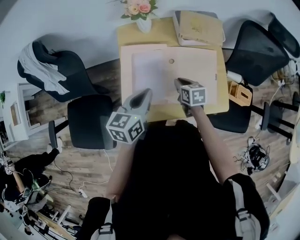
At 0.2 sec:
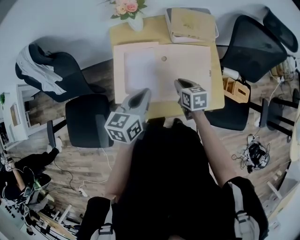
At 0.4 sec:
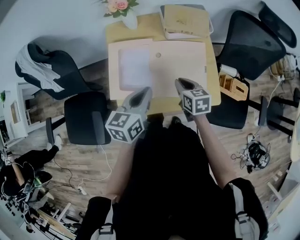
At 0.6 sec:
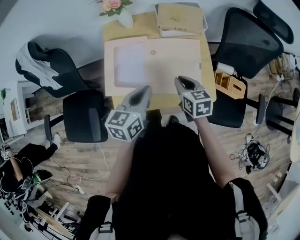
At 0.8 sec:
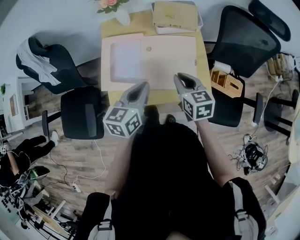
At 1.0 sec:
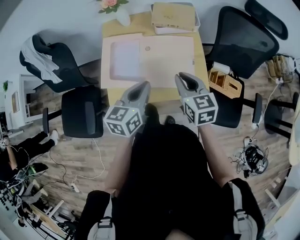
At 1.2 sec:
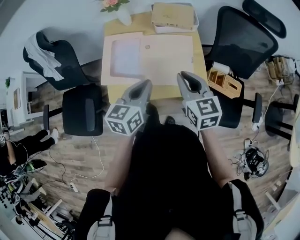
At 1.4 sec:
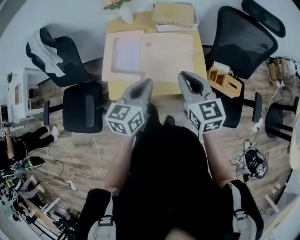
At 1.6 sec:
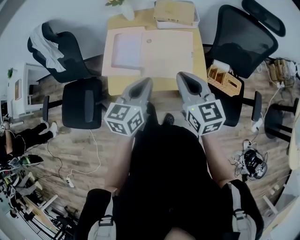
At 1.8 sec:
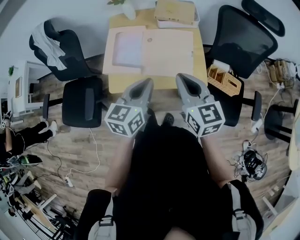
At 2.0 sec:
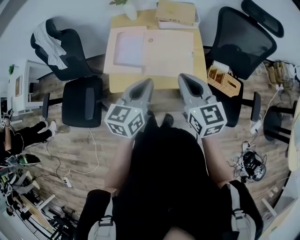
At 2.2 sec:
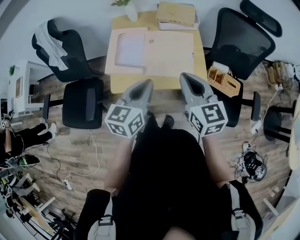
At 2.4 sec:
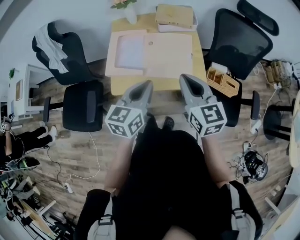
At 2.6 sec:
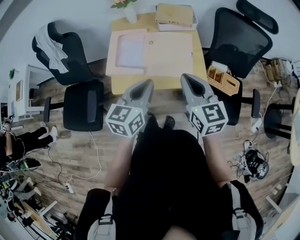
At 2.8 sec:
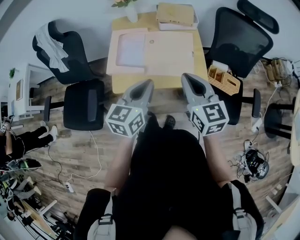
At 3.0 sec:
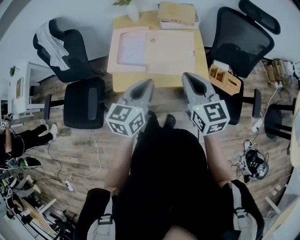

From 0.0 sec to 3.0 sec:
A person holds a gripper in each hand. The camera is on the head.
From 0.0 sec to 1.6 sec: The right gripper goes approximately 35 cm upward, backward and to the right, and tips its fingers upward by about 30 degrees, while the left gripper travels to the right and backward by some 25 cm.
From 1.6 sec to 3.0 sec: The left gripper travels backward by roughly 5 cm, while the right gripper ends up some 5 cm from where it was.

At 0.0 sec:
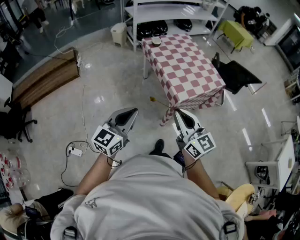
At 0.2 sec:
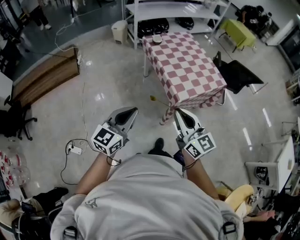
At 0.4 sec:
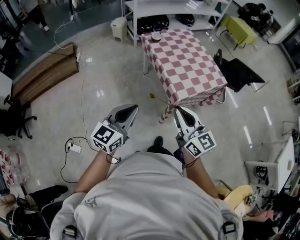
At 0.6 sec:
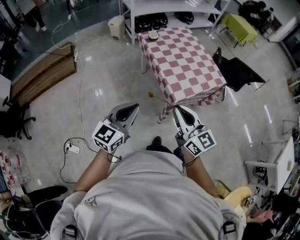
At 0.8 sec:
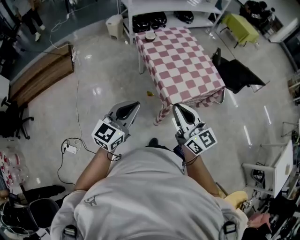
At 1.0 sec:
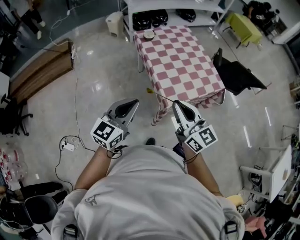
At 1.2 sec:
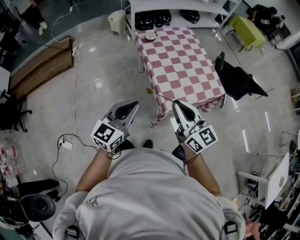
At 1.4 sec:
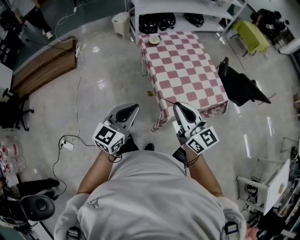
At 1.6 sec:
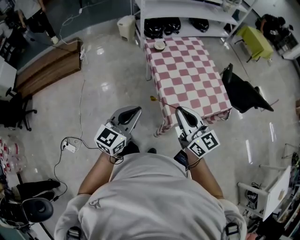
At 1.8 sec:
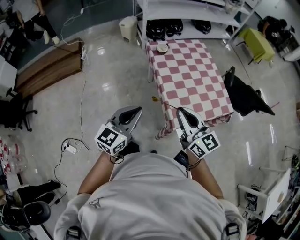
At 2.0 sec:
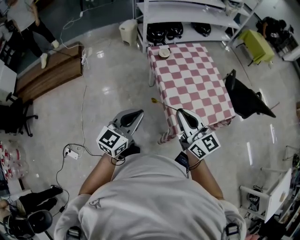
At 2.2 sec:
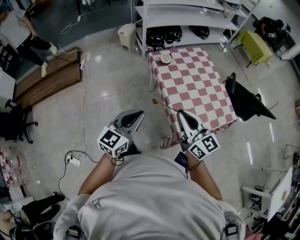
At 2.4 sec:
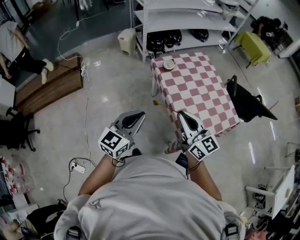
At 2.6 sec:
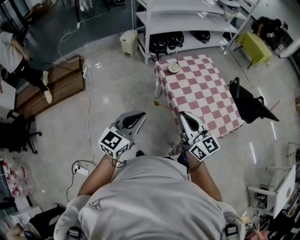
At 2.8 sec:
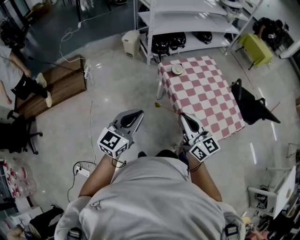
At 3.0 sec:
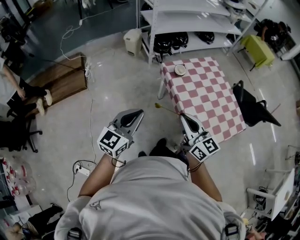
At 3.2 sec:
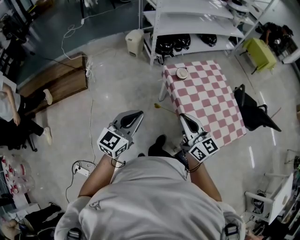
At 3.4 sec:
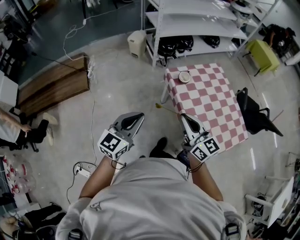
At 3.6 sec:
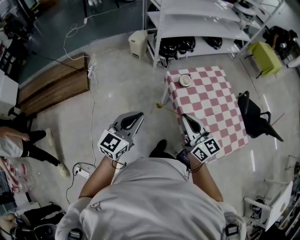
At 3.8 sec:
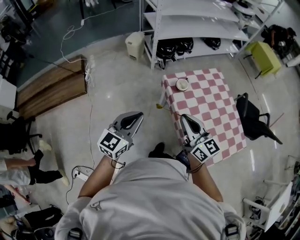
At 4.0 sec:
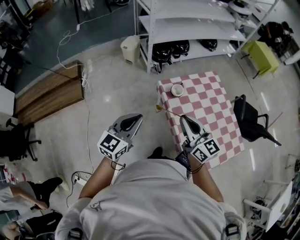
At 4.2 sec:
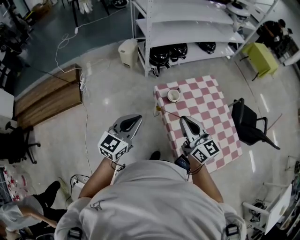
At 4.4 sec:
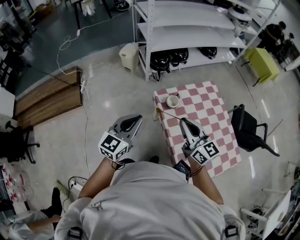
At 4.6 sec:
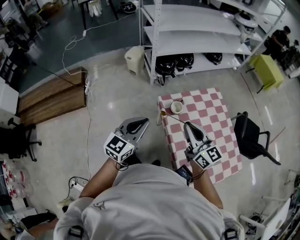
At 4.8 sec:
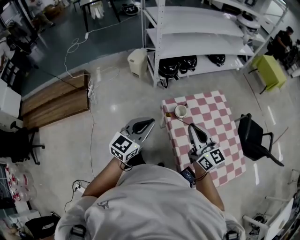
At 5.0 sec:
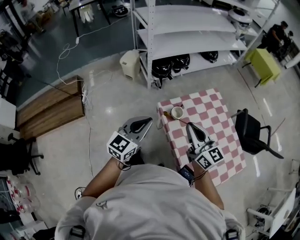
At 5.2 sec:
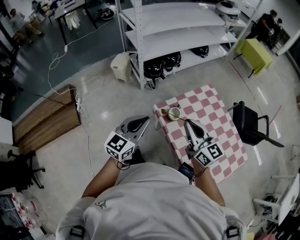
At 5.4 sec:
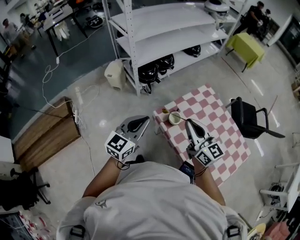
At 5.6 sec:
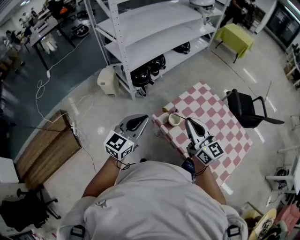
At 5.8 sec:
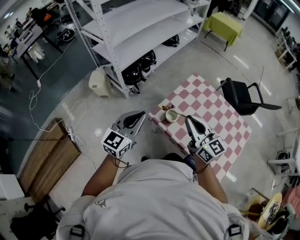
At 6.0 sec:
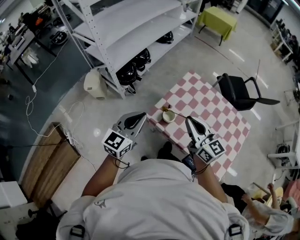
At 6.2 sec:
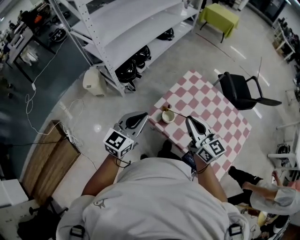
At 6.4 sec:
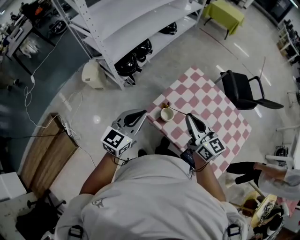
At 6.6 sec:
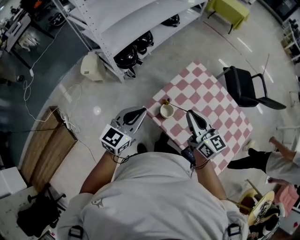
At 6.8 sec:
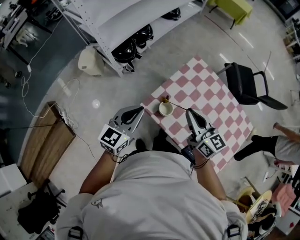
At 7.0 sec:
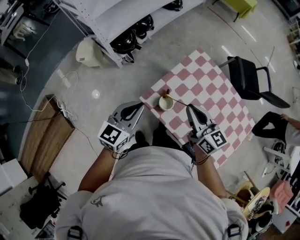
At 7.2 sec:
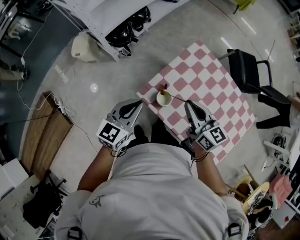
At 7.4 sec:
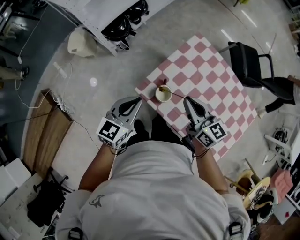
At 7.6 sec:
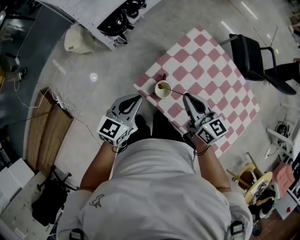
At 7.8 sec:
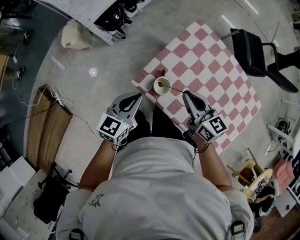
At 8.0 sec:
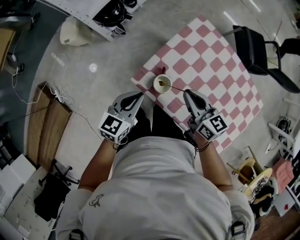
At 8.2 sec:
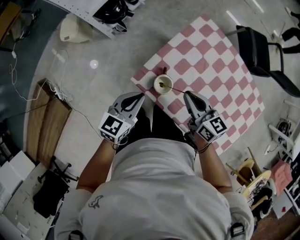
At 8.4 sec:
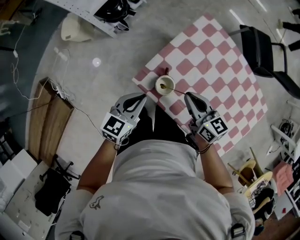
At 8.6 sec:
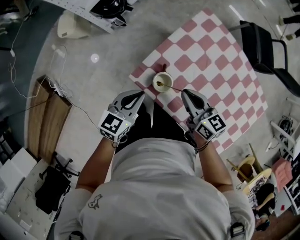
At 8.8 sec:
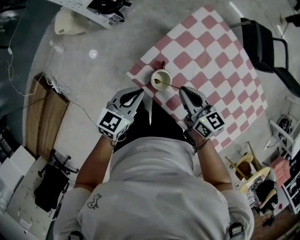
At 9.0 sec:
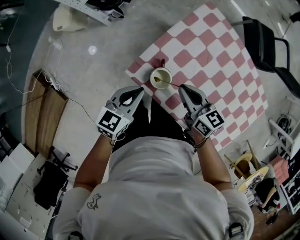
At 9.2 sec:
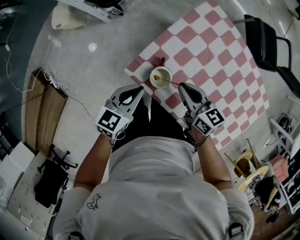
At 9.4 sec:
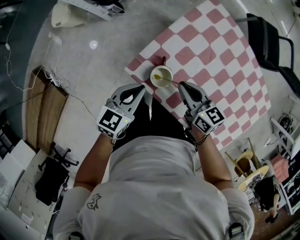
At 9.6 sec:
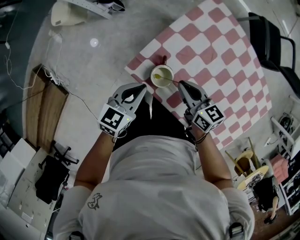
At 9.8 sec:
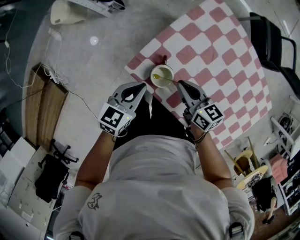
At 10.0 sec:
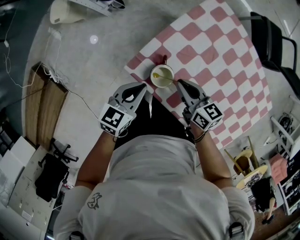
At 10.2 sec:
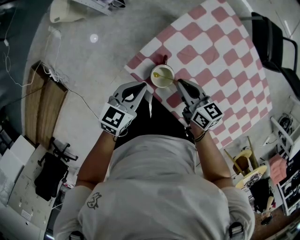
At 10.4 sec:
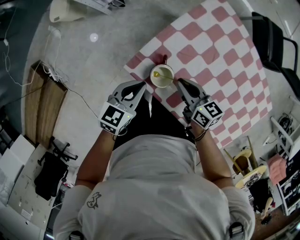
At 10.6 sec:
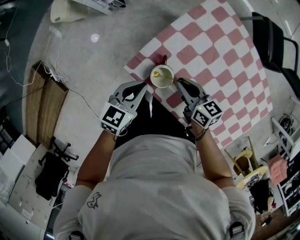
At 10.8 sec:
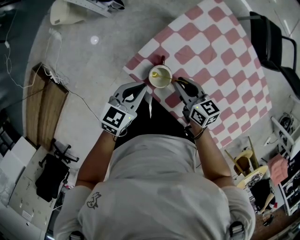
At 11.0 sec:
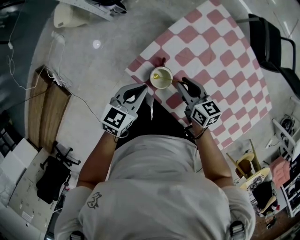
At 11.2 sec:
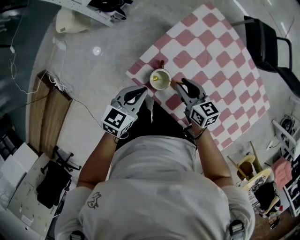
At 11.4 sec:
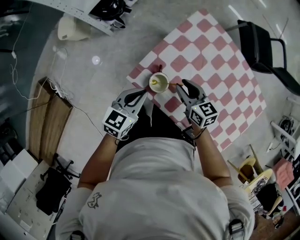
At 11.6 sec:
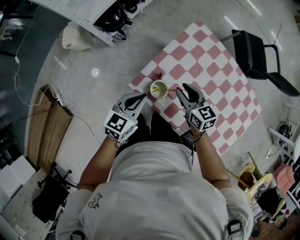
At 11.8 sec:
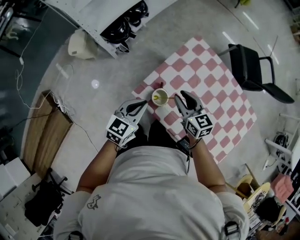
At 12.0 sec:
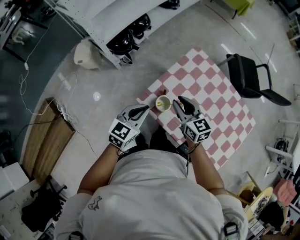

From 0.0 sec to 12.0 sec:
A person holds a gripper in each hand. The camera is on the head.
From 0.0 sec to 1.6 sec: Both grippers move forward and to the right, roughly 25 cm.
From 1.6 sec to 3.0 sec: The two grippers go some 25 cm to the left and forward.
From 3.0 sec to 4.4 sec: The two grippers go roughly 25 cm forward.
From 4.4 sec to 6.0 sec: The right gripper shifts by about 15 cm, and turns by roughly 30 degrees. The left gripper changes place by some 20 cm, and swivels some 30 degrees.
From 6.0 sec to 7.6 sec: The two grippers go roughly 20 cm downward and forward. The right gripper rotates approximately 20 degrees.
From 7.6 sec to 9.0 sec: The grippers both shift downward by approximately 10 cm.
From 9.0 sec to 10.4 sec: The right gripper shifts some 5 cm downward.
From 10.4 sec to 12.0 sec: Both grippers move upward, approximately 15 cm. The right gripper changes its angle by approximately 30 degrees.

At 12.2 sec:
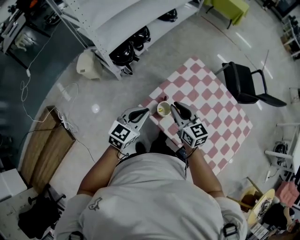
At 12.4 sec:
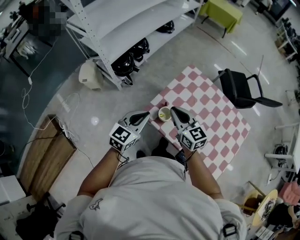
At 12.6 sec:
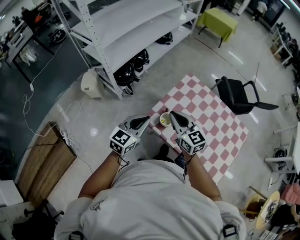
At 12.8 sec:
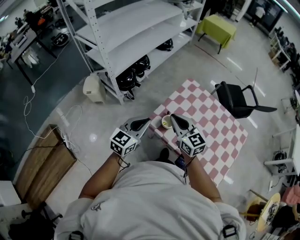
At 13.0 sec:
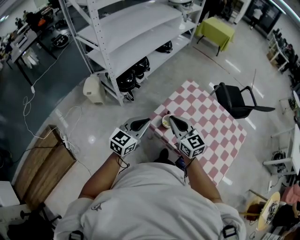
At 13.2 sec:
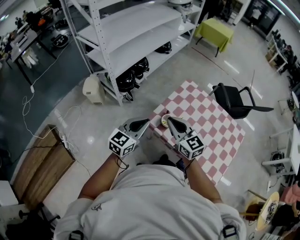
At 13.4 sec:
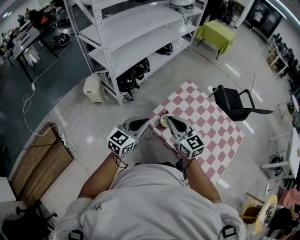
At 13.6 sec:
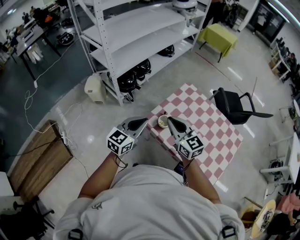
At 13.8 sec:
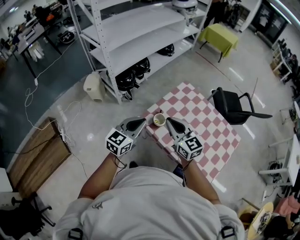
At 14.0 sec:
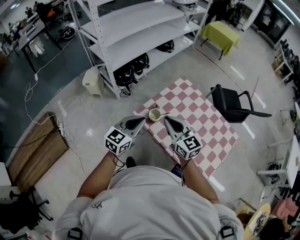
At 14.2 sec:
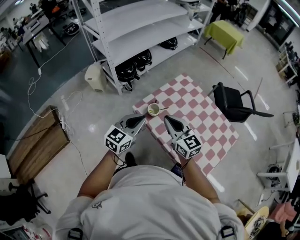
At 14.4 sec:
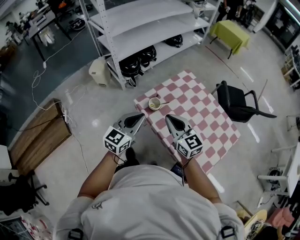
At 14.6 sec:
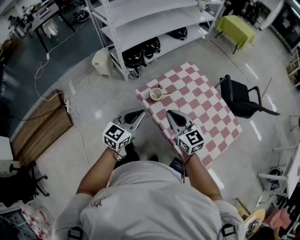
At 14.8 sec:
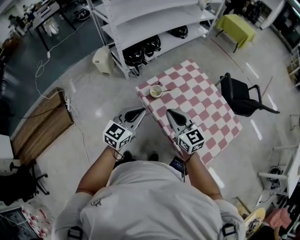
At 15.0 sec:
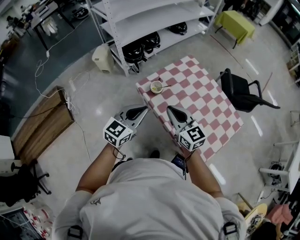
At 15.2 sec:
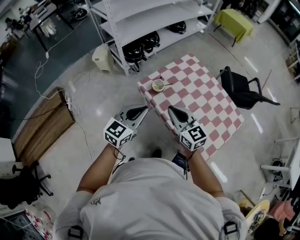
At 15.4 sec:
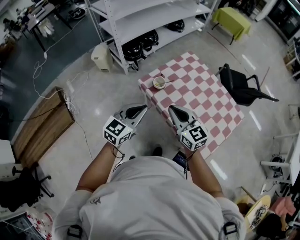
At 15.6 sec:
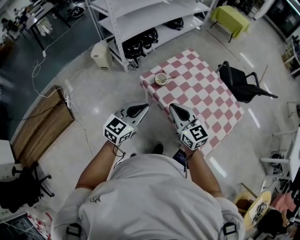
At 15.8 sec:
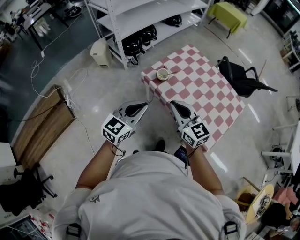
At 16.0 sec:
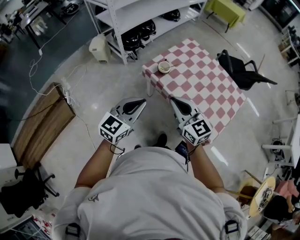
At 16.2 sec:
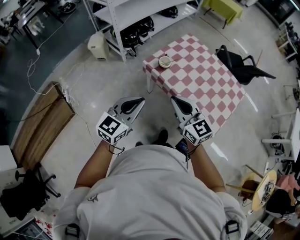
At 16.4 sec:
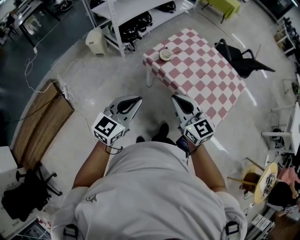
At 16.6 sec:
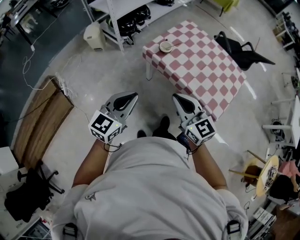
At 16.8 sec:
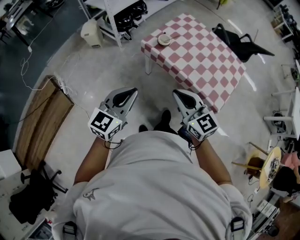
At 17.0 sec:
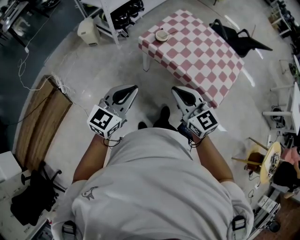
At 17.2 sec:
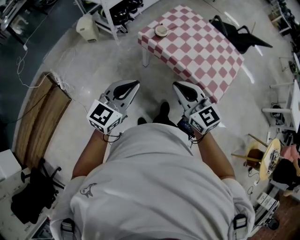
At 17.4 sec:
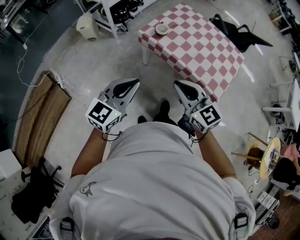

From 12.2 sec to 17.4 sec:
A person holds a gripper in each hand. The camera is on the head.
From 12.2 sec to 14.0 sec: The two grippers go approximately 15 cm backward and upward.
From 14.0 sec to 15.6 sec: The grippers both shift backward by approximately 15 cm.
From 15.6 sec to 17.4 sec: The two grippers go roughly 20 cm backward and to the left.

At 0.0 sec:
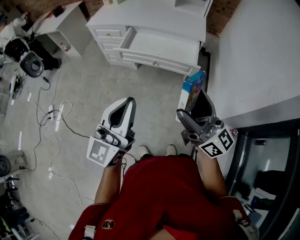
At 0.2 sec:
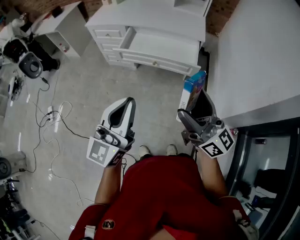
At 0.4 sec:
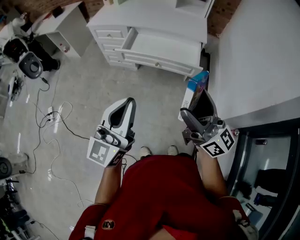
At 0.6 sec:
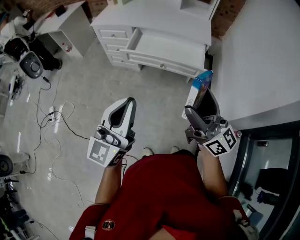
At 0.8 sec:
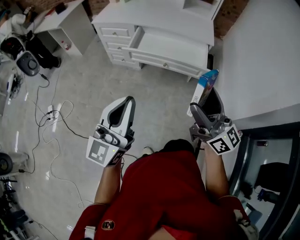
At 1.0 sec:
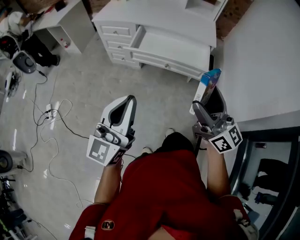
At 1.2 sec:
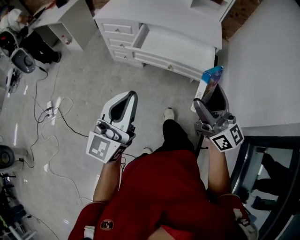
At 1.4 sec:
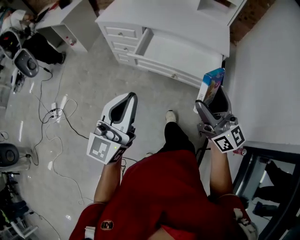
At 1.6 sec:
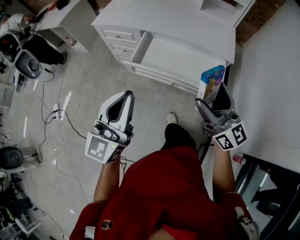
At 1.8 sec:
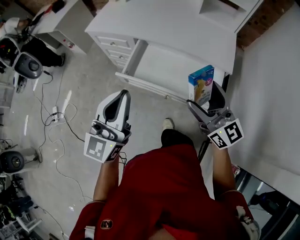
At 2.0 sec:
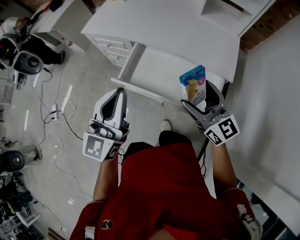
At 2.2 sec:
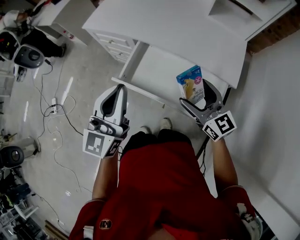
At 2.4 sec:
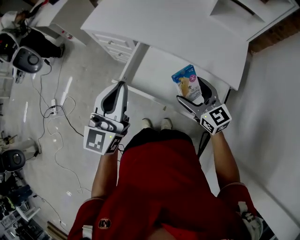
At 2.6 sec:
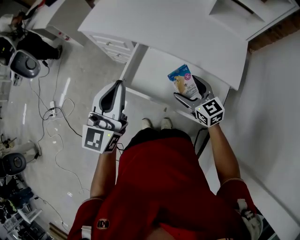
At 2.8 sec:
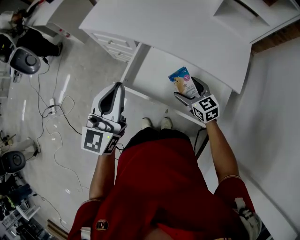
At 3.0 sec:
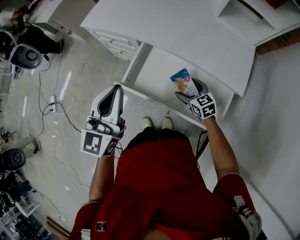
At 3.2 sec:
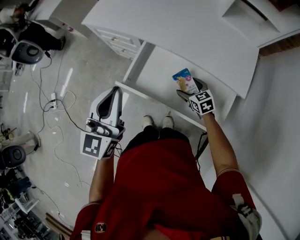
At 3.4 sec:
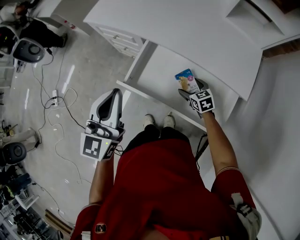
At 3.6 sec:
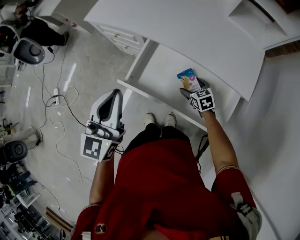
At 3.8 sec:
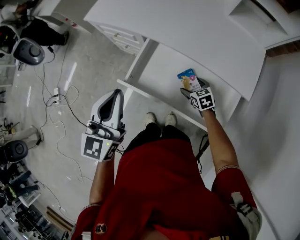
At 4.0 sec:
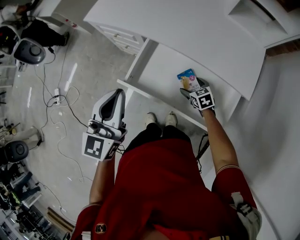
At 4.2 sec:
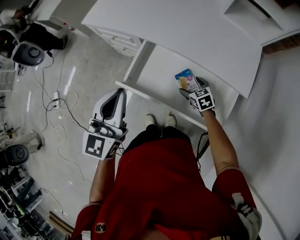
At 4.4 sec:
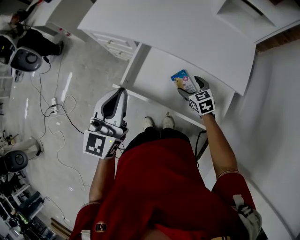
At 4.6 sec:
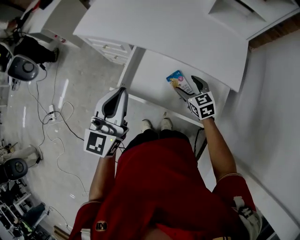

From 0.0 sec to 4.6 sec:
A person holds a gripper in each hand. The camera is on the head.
From 0.0 sec to 1.6 sec: Both grippers move forward, about 30 cm.
From 1.6 sec to 3.0 sec: The left gripper travels forward by some 25 cm; the right gripper goes some 40 cm downward and forward, and points its fingers roughly 50 degrees further downward.
From 3.0 sec to 4.6 sec: The right gripper moves some 10 cm downward and comes back.
